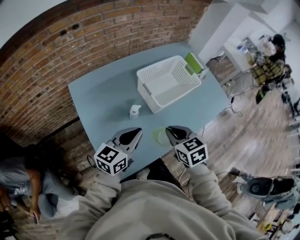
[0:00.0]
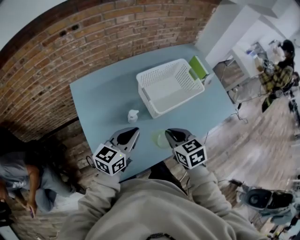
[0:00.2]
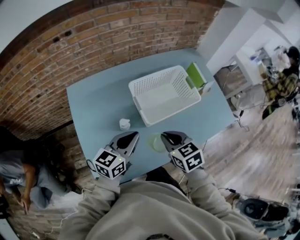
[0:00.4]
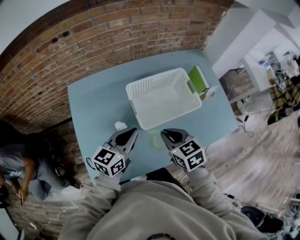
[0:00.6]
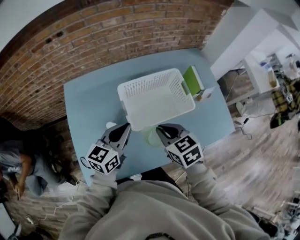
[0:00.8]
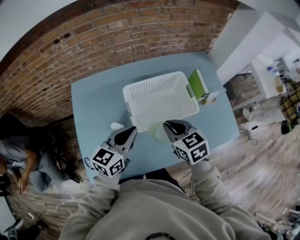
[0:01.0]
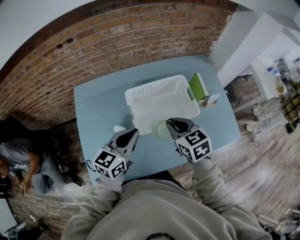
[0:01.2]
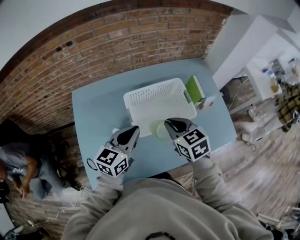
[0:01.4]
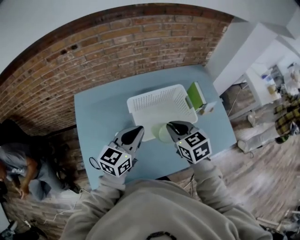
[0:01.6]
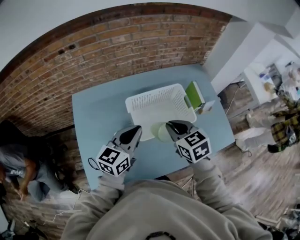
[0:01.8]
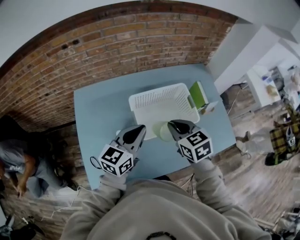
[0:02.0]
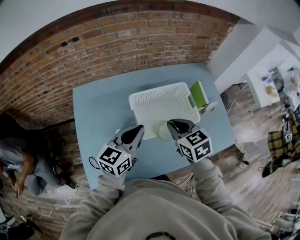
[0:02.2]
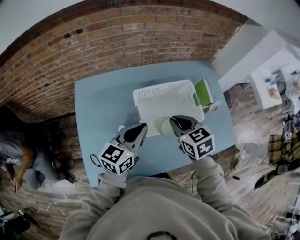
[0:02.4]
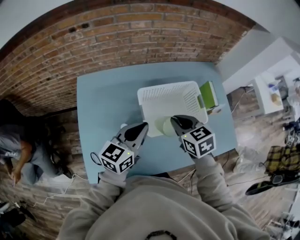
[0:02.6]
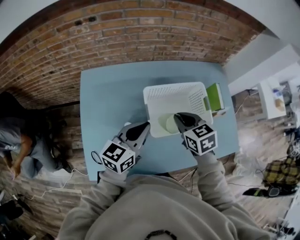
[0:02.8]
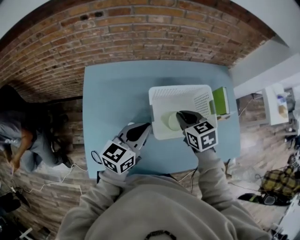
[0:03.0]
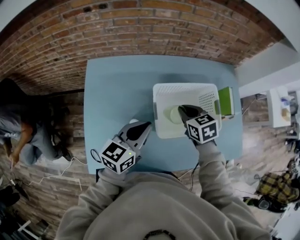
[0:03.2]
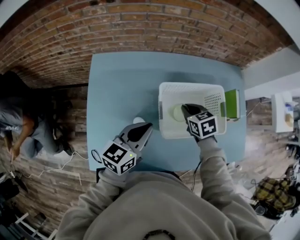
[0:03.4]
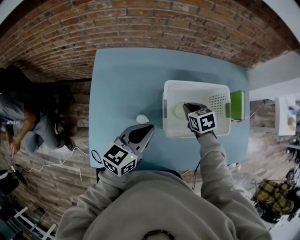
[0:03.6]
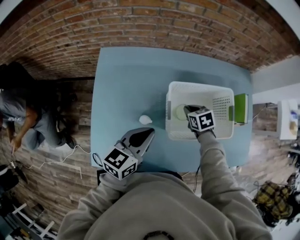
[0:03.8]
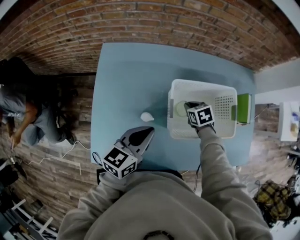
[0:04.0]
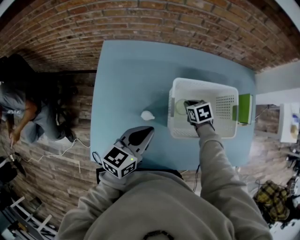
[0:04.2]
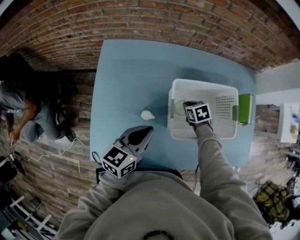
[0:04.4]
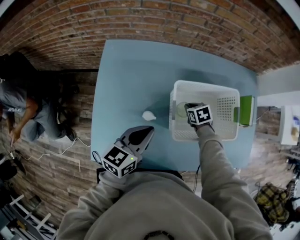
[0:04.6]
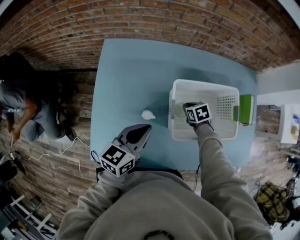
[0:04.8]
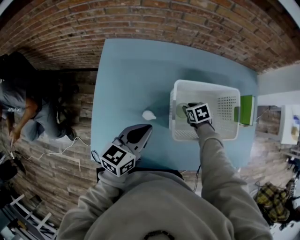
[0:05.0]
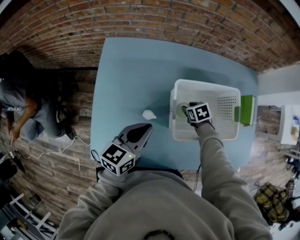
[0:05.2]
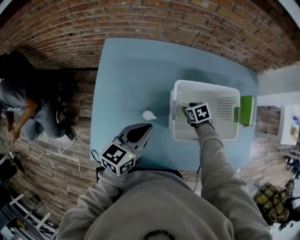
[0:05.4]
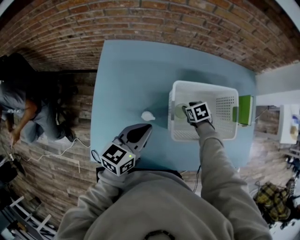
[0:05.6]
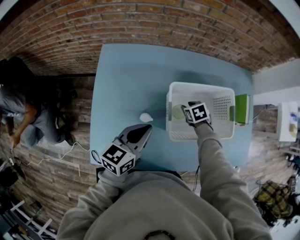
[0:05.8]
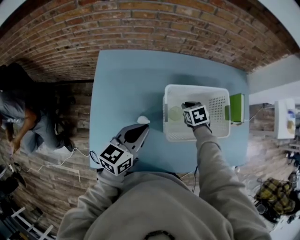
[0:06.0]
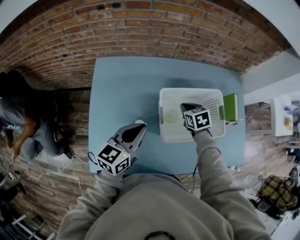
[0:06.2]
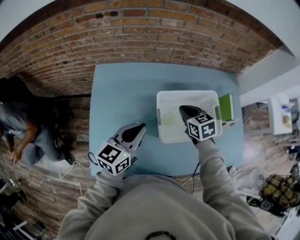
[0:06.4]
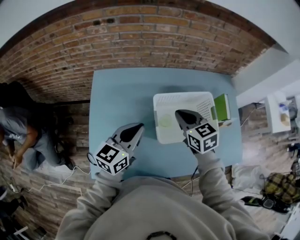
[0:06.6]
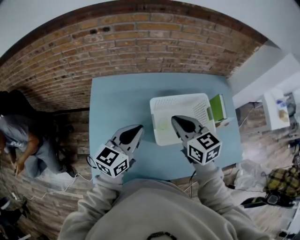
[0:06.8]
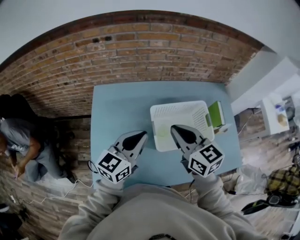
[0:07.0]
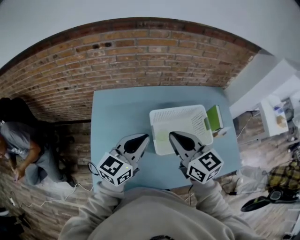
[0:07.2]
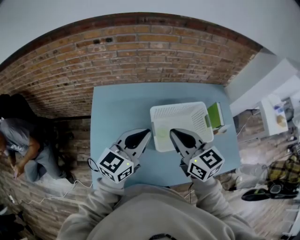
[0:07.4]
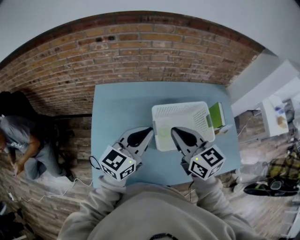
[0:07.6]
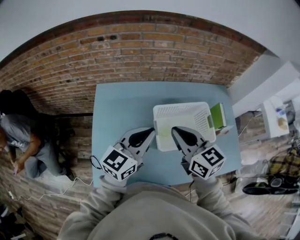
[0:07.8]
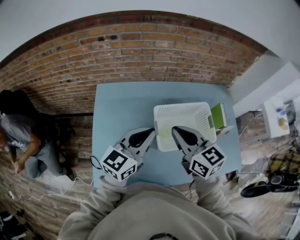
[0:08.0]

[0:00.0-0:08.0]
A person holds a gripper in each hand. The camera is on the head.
0.0 to 1.6 s: The grippers both shift forward and to the right by roughly 20 cm. The left gripper rotates about 20 degrees.
1.6 to 3.2 s: The left gripper is displaced to the left and downward by roughly 10 cm, while the right gripper moves forward, downward and to the left, some 15 cm.
3.2 to 4.8 s: The right gripper moves downward, roughly 20 cm, and swivels about 20 degrees. The left gripper heads downward and to the left, covering roughly 10 cm.
4.8 to 6.4 s: The right gripper goes approximately 20 cm upward, changes its angle by some 30 degrees, and opens, then closes once more. Meanwhile the left gripper moves upward, approximately 5 cm.
6.4 to 8.0 s: The left gripper is displaced upward by approximately 10 cm. The right gripper travels upward and backward by about 20 cm, and turns by some 30 degrees.

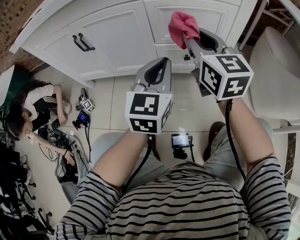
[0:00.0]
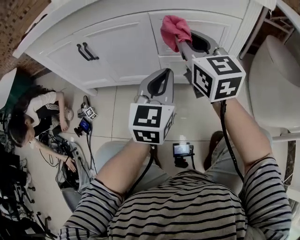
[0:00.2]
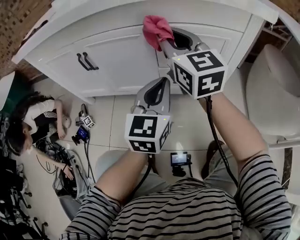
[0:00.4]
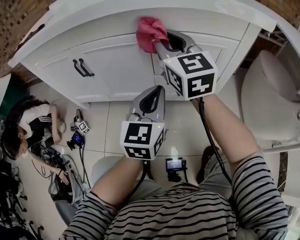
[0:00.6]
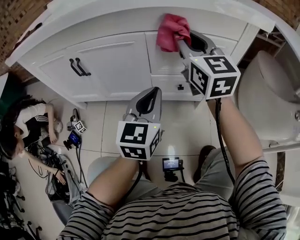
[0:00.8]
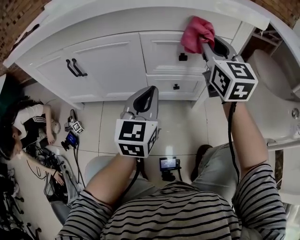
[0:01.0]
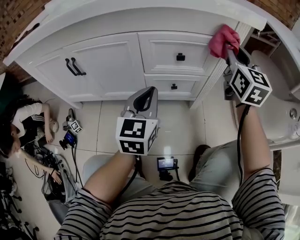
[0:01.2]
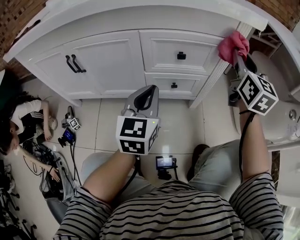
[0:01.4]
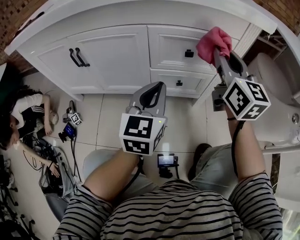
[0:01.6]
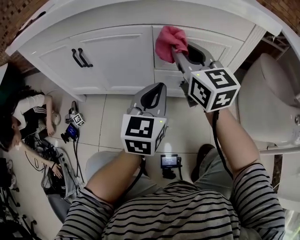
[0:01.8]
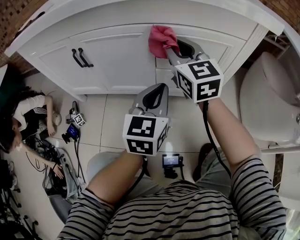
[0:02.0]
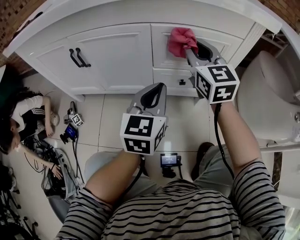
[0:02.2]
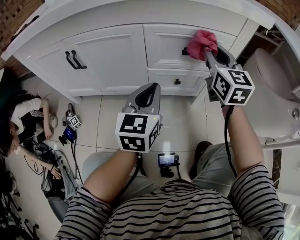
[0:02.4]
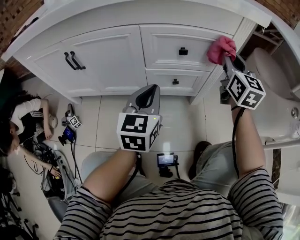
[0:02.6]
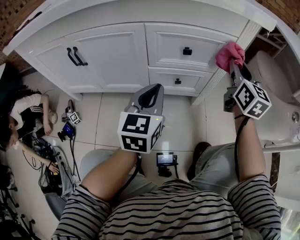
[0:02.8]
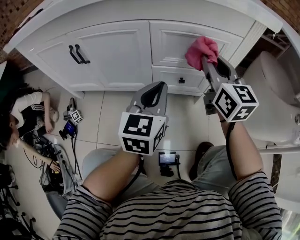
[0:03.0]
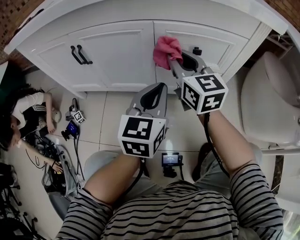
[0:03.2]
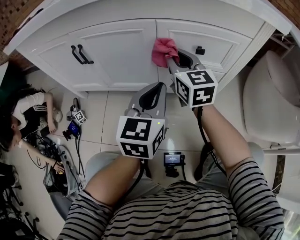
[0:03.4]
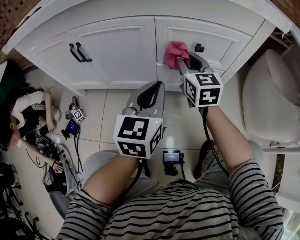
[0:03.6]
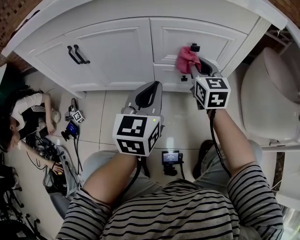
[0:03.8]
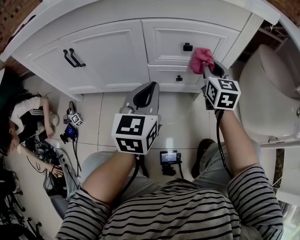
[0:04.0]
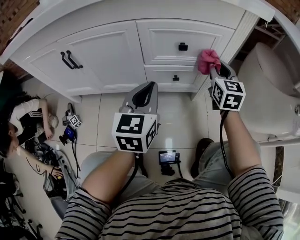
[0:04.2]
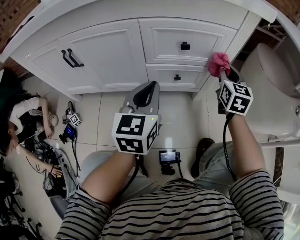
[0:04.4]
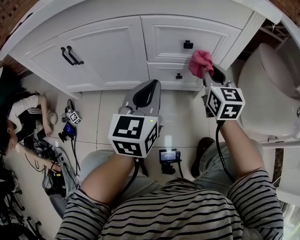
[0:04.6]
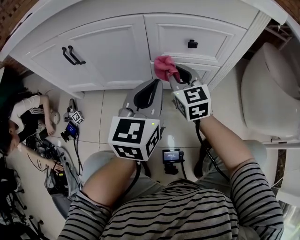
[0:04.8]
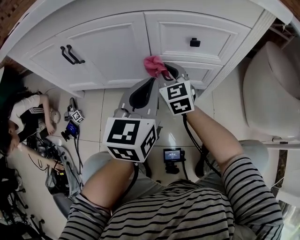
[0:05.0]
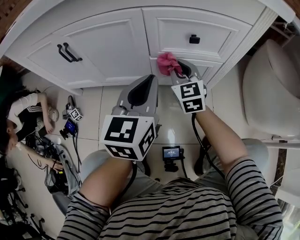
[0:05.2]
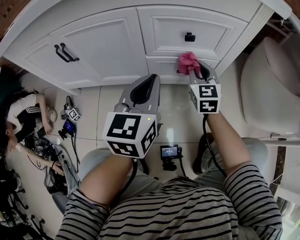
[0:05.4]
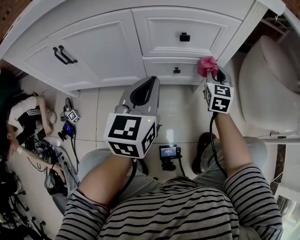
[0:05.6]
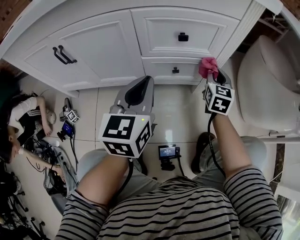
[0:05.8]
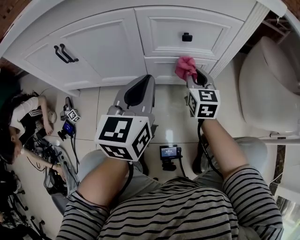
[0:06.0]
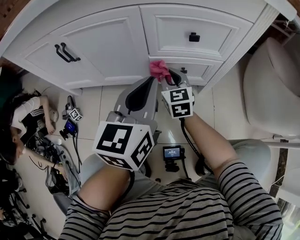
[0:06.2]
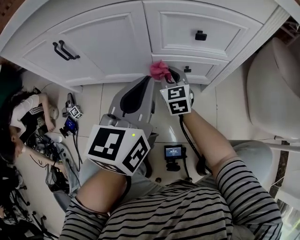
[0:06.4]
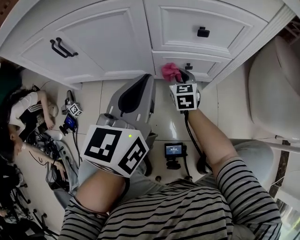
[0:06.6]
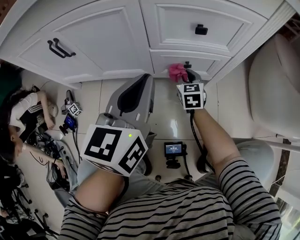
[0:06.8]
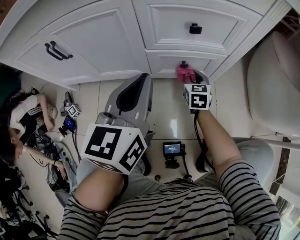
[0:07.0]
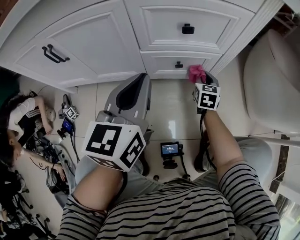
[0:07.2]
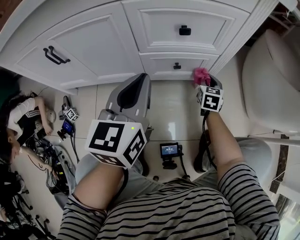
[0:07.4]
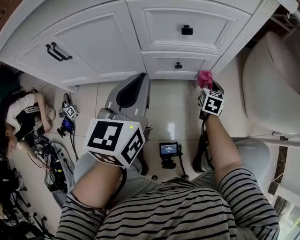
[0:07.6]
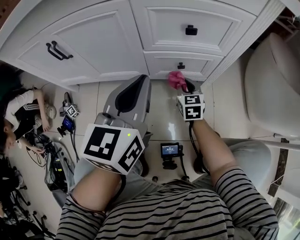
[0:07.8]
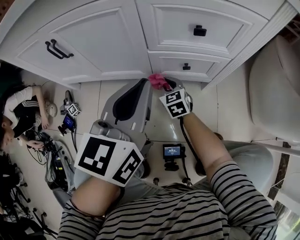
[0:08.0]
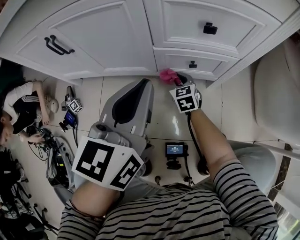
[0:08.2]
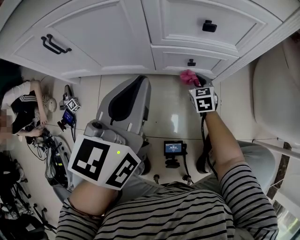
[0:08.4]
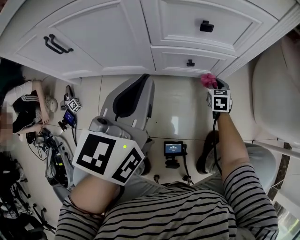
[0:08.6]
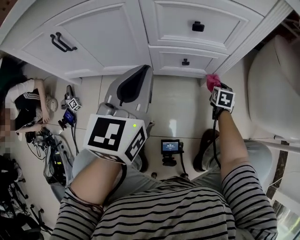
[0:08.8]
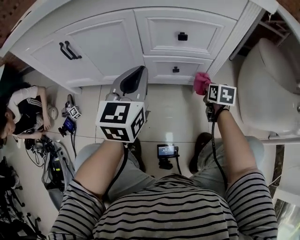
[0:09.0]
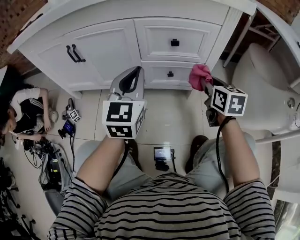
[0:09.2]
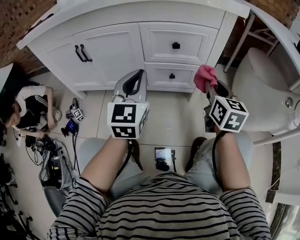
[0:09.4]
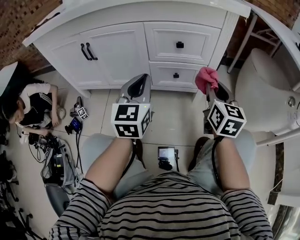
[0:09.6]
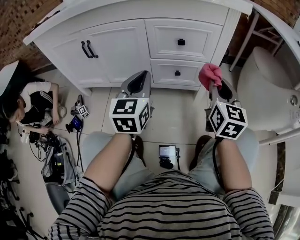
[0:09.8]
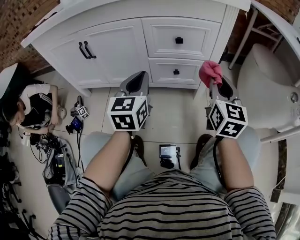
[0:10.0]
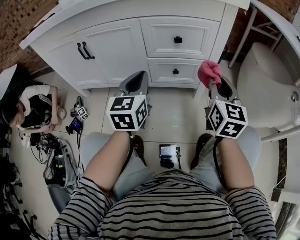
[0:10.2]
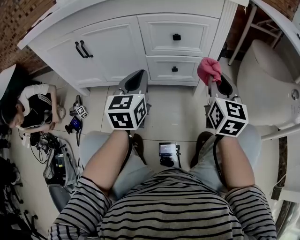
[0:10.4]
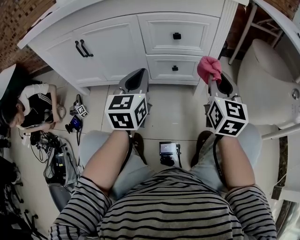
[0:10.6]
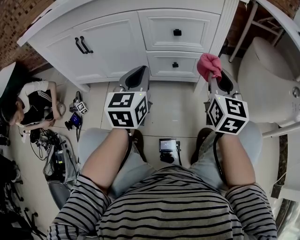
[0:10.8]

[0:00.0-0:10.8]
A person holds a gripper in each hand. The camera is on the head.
0.0 to 1.6 s: The right gripper swings left and right, some 25 cm each way, with 2 reversals.
1.6 to 3.0 s: The right gripper goes left and right, roughly 25 cm each way, reversing 2 times.
3.0 to 4.6 s: The right gripper goes left and right, approximately 25 cm each way, reversing 2 times.
4.6 to 6.2 s: The right gripper swings left and right, approximately 25 cm each way, with 2 reversals.
6.2 to 7.8 s: The right gripper goes approximately 10 cm downward, and moves roughly 25 cm to the right and comes back.
7.8 to 9.2 s: The right gripper heads upward and to the right, covering approximately 25 cm.
9.2 to 10.8 s: The right gripper moves upward and backward, about 10 cm, and rotates roughly 30 degrees.

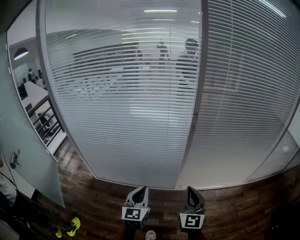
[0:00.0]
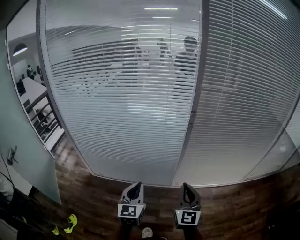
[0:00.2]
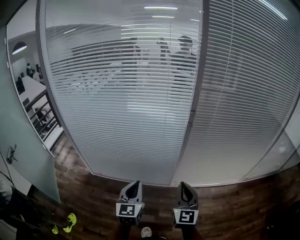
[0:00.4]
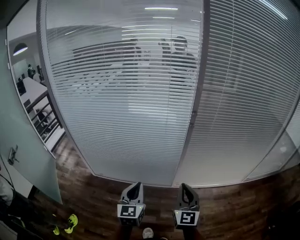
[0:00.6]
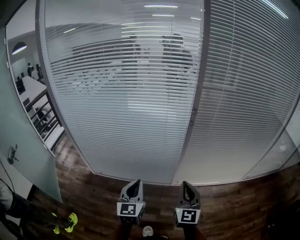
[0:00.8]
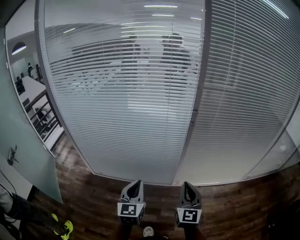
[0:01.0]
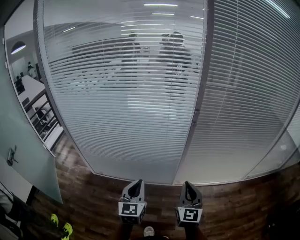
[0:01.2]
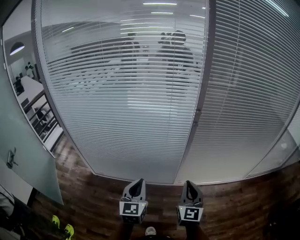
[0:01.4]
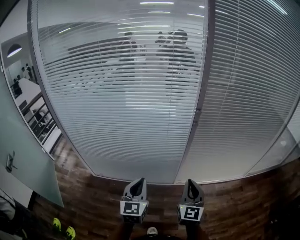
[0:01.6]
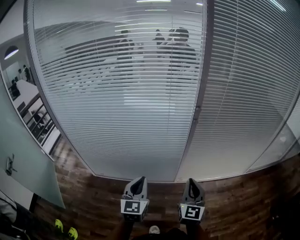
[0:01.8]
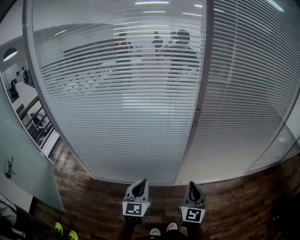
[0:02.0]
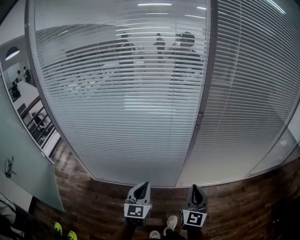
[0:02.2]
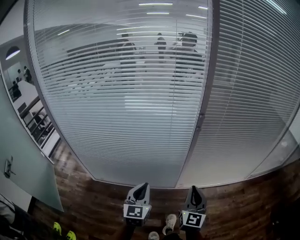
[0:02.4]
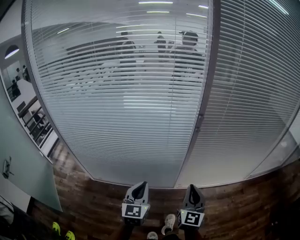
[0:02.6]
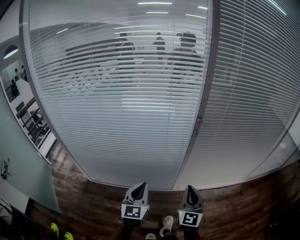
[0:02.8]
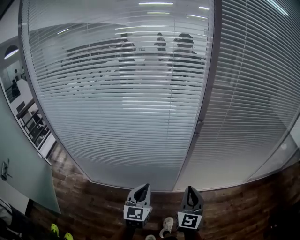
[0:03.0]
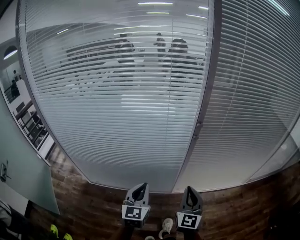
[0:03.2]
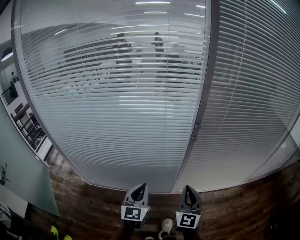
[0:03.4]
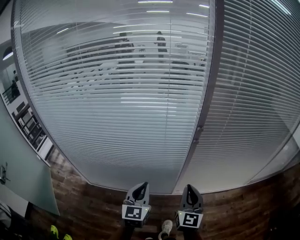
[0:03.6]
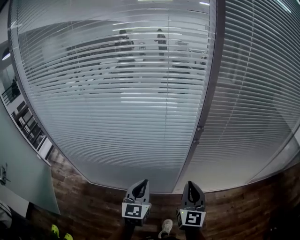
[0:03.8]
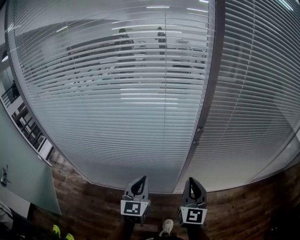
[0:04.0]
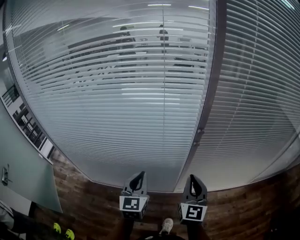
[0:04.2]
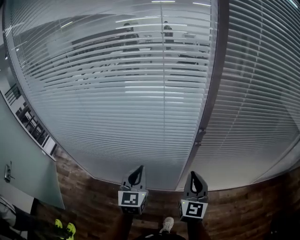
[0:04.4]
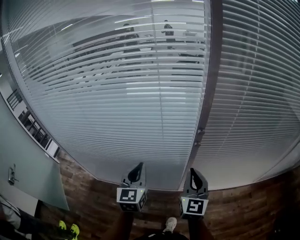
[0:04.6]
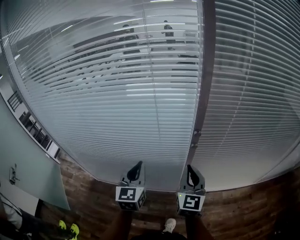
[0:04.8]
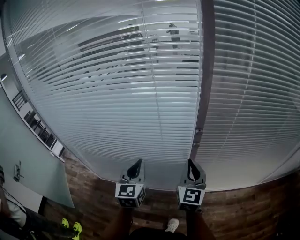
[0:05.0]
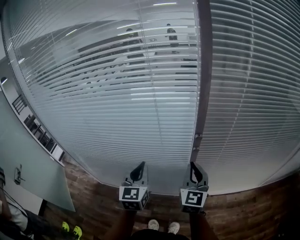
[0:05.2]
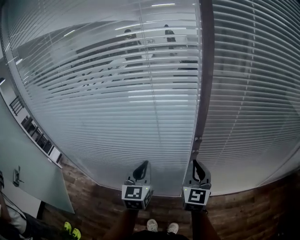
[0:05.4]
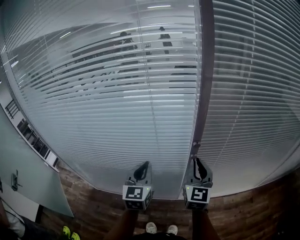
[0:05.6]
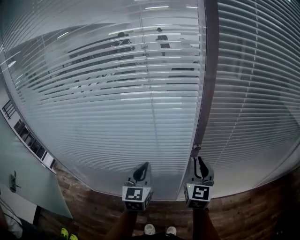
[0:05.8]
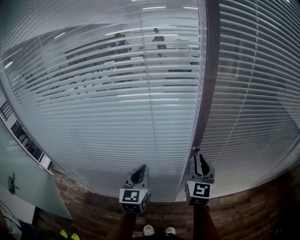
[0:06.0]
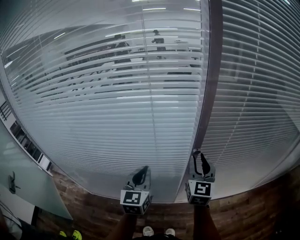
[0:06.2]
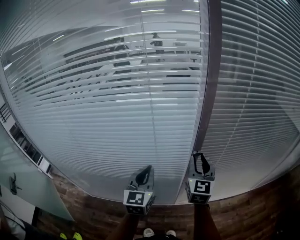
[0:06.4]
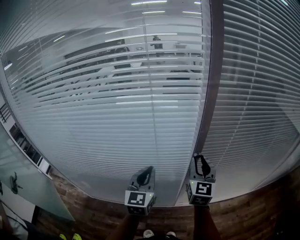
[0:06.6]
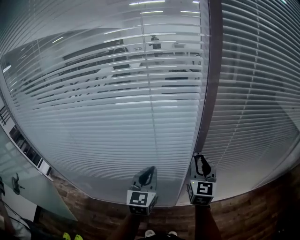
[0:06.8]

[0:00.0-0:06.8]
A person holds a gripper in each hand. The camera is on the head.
0.0 to 1.4 s: The right gripper moves about 5 cm. The left gripper ends up approximately 5 cm from where it was.
1.4 to 2.8 s: The grippers both shift forward by some 5 cm.
2.8 to 4.0 s: The left gripper travels forward by some 10 cm, while the right gripper shifts roughly 10 cm forward and upward.
4.0 to 5.4 s: Both grippers move forward, about 10 cm.
5.4 to 6.8 s: The right gripper moves forward, roughly 5 cm, and opens.
